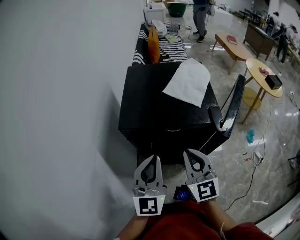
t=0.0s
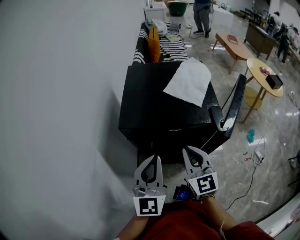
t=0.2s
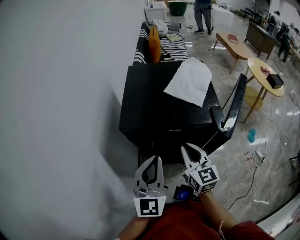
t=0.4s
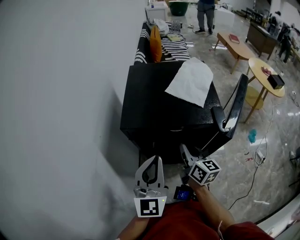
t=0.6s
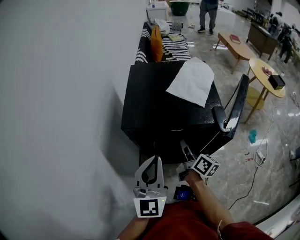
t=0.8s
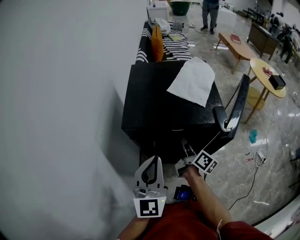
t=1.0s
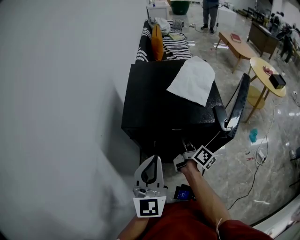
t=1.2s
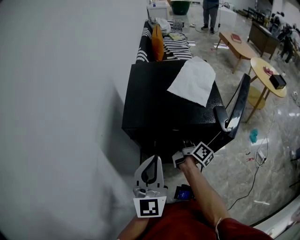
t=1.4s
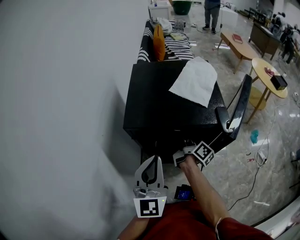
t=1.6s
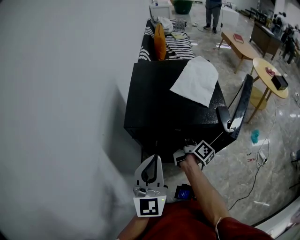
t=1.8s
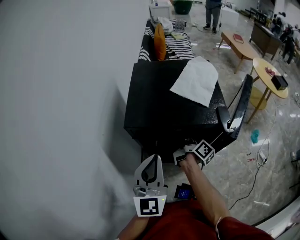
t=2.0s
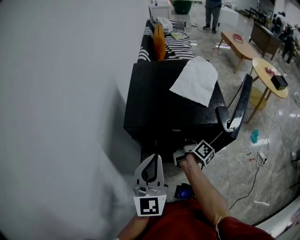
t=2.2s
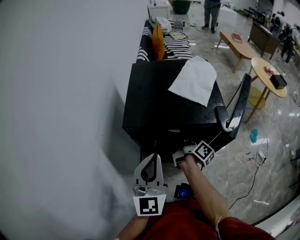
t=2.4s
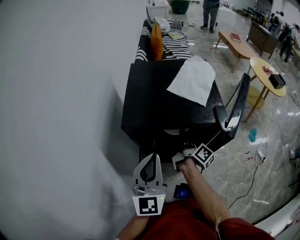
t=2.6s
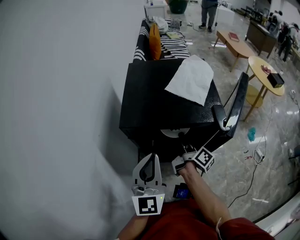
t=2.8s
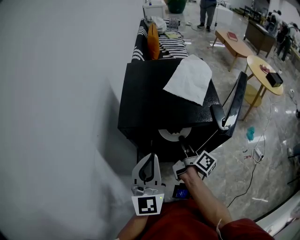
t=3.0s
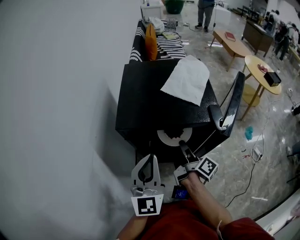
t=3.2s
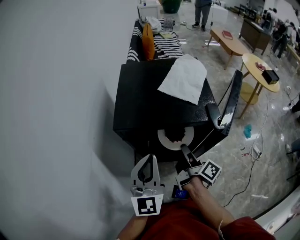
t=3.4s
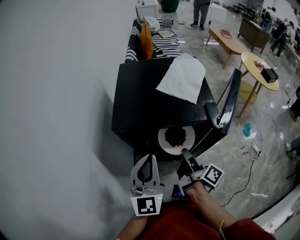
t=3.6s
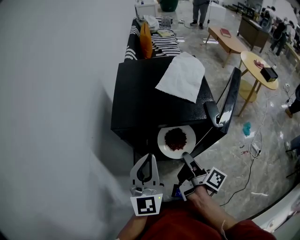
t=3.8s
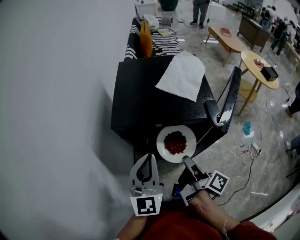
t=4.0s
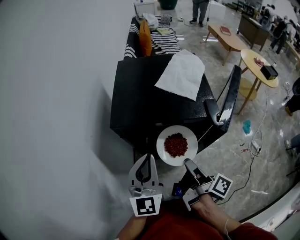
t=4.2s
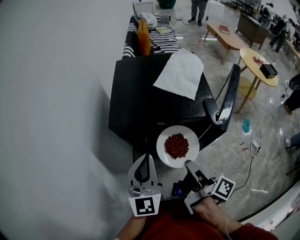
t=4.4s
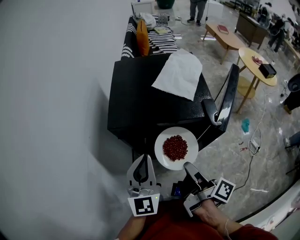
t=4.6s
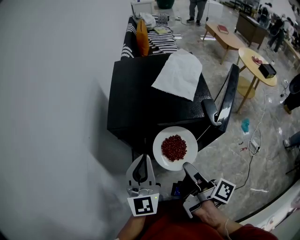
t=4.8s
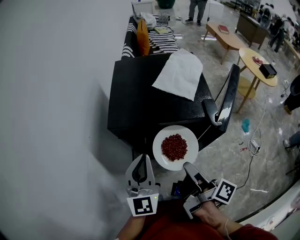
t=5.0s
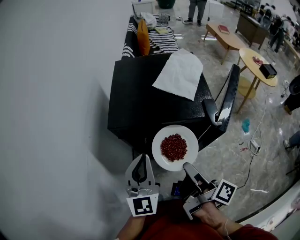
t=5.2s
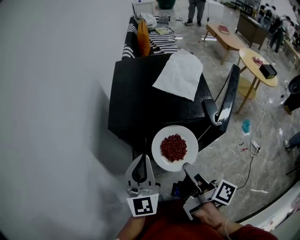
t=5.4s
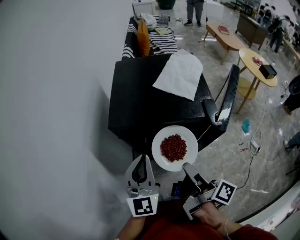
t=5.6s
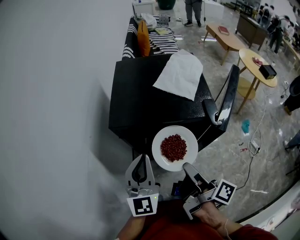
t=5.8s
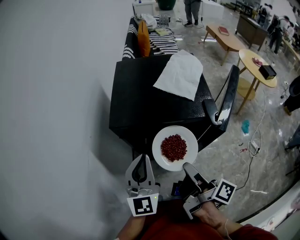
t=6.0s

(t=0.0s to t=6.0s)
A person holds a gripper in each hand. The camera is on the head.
t=0.0s - t=1.6s: The right gripper shifts approximately 20 cm downward and forward, and rotates around the line of its fingers by approximately 80 degrees, clockwise from behind.
t=1.6s - t=3.0s: The right gripper is displaced backward by roughly 5 cm.
t=3.0s - t=4.4s: The right gripper heads backward and upward, covering approximately 15 cm.
t=4.4s - t=6.0s: The grippers move only a little.

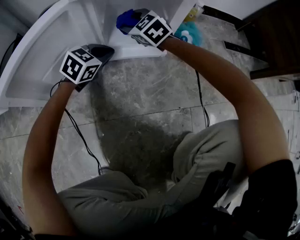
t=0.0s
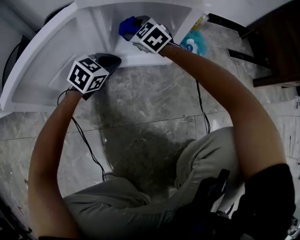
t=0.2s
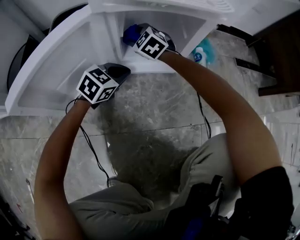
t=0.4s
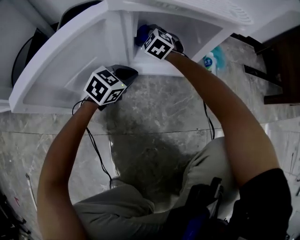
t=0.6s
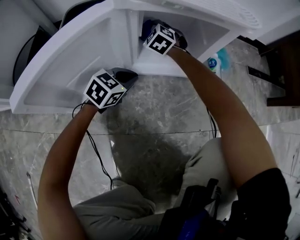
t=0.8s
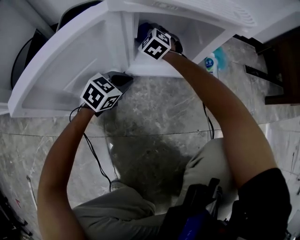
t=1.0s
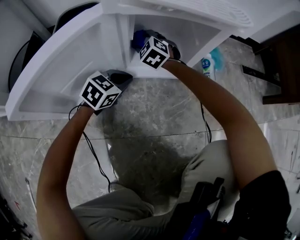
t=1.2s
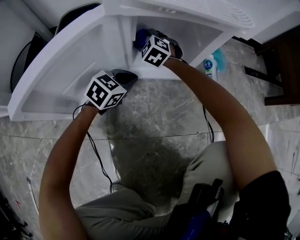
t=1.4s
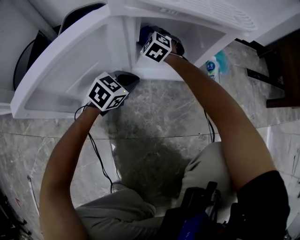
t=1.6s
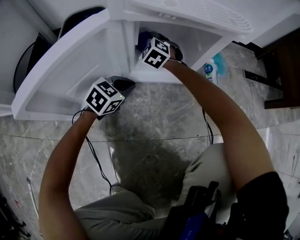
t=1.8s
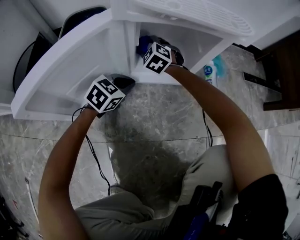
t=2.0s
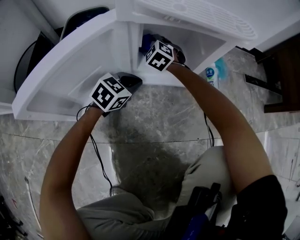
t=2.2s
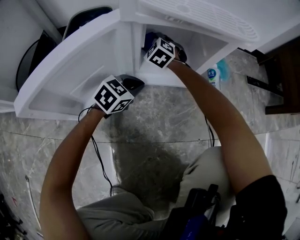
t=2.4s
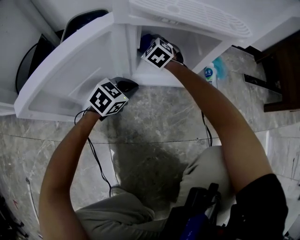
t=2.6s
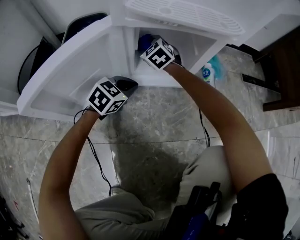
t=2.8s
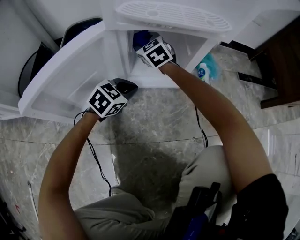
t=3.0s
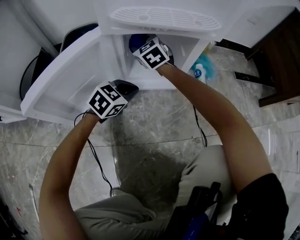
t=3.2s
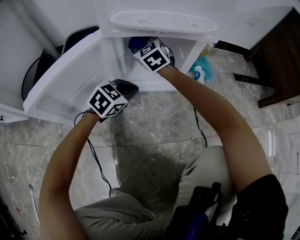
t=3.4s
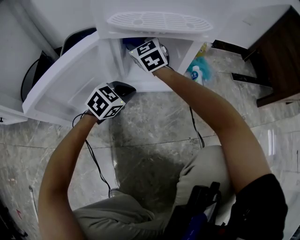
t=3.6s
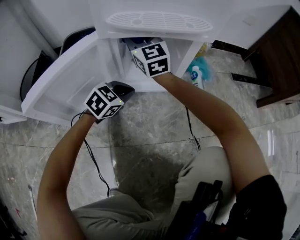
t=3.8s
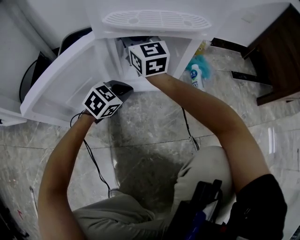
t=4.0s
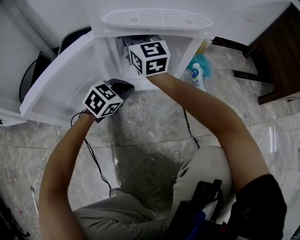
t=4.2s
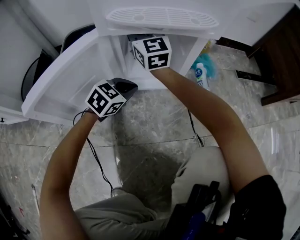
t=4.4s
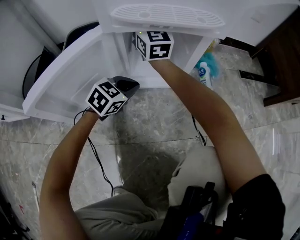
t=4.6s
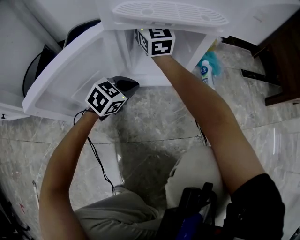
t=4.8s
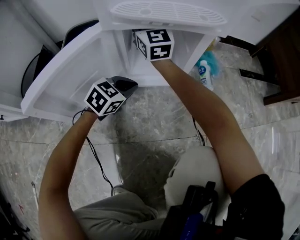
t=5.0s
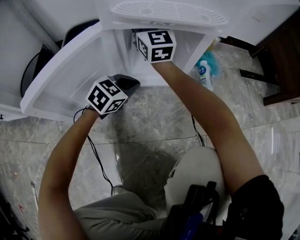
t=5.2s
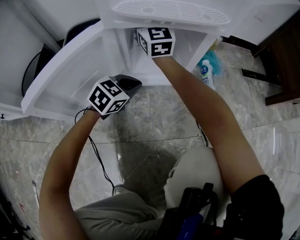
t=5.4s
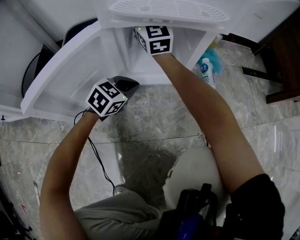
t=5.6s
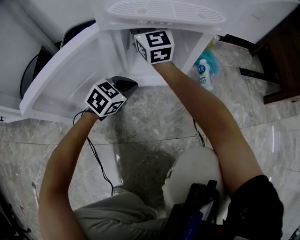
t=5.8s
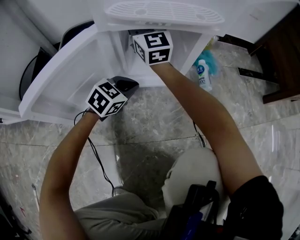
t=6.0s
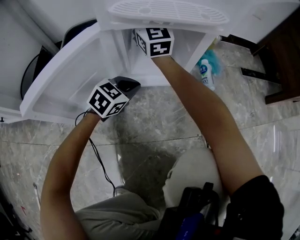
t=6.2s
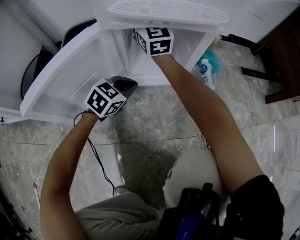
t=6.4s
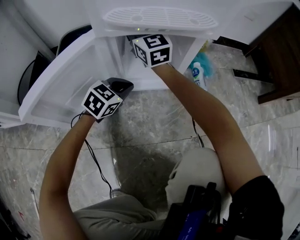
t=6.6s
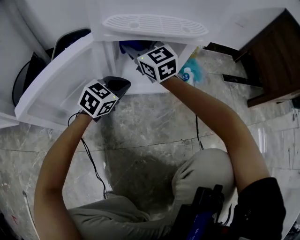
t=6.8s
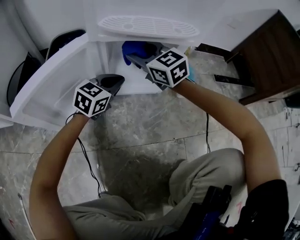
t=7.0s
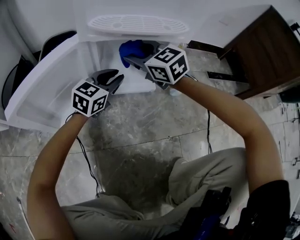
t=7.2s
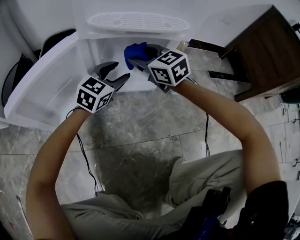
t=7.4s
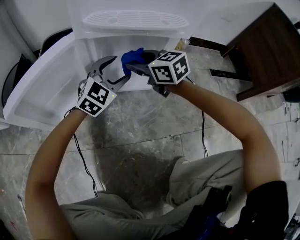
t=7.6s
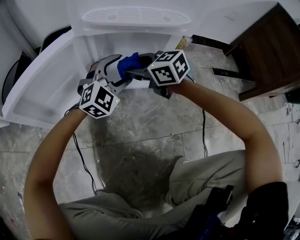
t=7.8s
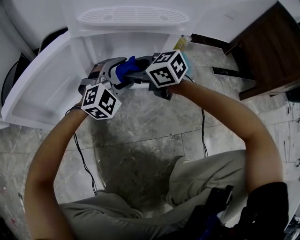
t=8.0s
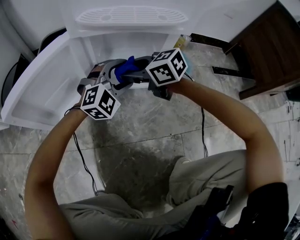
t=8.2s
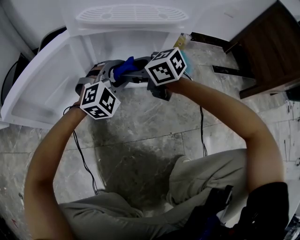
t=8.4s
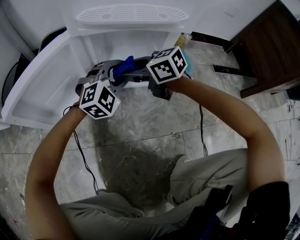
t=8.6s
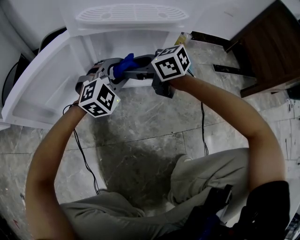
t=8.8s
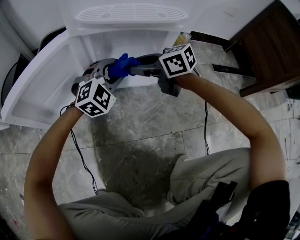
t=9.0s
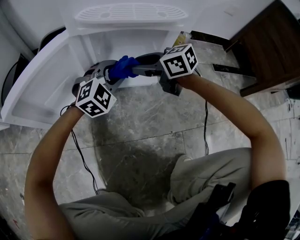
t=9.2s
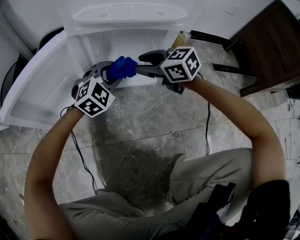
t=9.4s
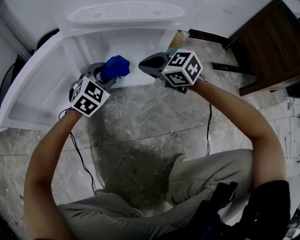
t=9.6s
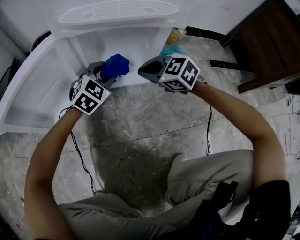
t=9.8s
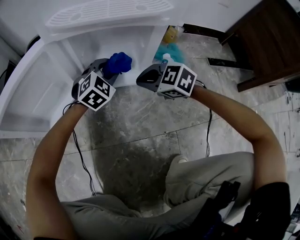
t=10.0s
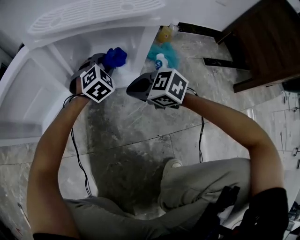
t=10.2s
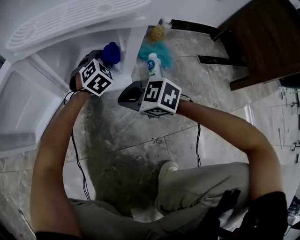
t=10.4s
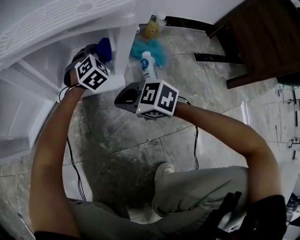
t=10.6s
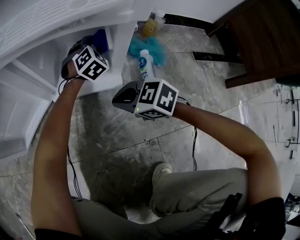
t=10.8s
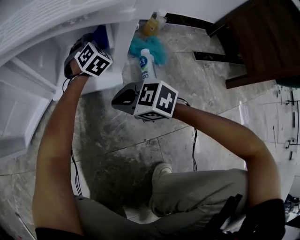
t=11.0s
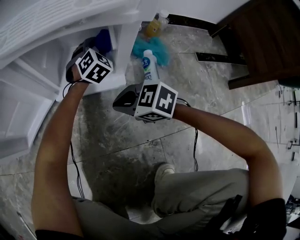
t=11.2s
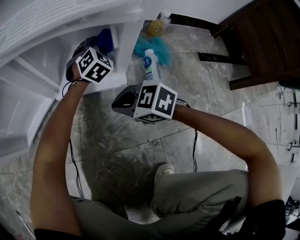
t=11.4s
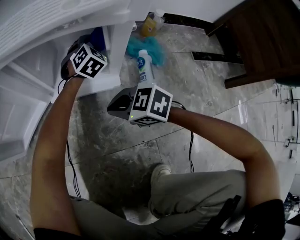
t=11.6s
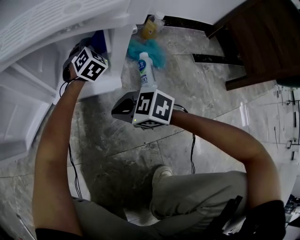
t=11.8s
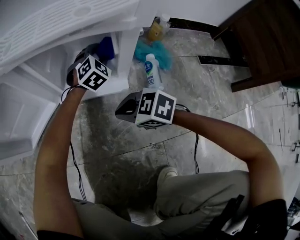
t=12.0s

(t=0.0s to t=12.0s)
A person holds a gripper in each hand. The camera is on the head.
t=0.0s - t=1.6s: The left gripper shifts by approximately 5 cm. The right gripper moves downward, to the left and forward, approximately 10 cm, and rotates approximately 20 degrees.
t=1.6s - t=3.0s: The right gripper moves upward, roughly 10 cm, and swivels about 30 degrees.
t=3.0s - t=4.4s: The right gripper heads upward, covering approximately 15 cm, and tilts its fingers some 40 degrees upward.
t=4.4s - t=6.0s: There are only small adjustments of the grippers.
t=6.0s - t=7.6s: The left gripper heads upward and forward, covering approximately 10 cm, swivels about 30 degrees, and opens up. Meanwhile the right gripper goes about 15 cm backward, to the right and downward, and angles its fingers downward, by some 40 degrees.
t=7.6s - t=9.0s: The left gripper rotates some 20 degrees, and closes. The right gripper swivels approximately 20 degrees.
t=9.0s - t=10.4s: The right gripper goes roughly 15 cm downward and backward, rotates approximately 30 degrees, and closes up, while the left gripper shifts some 20 cm to the right, downward and forward, and swivels some 20 degrees.

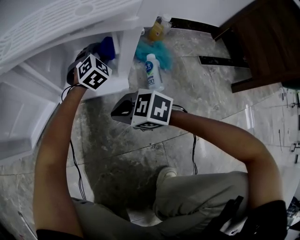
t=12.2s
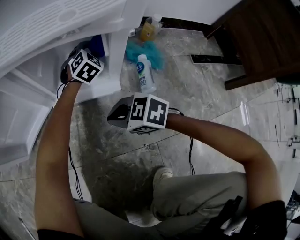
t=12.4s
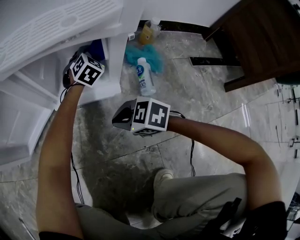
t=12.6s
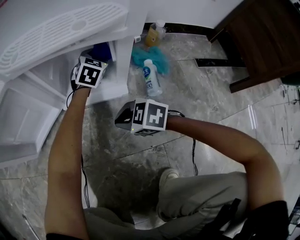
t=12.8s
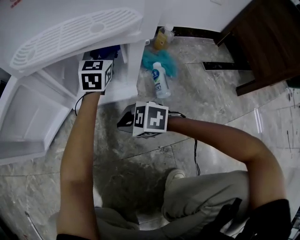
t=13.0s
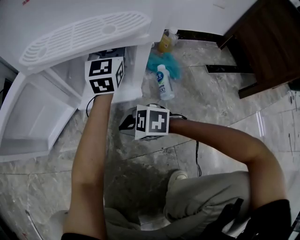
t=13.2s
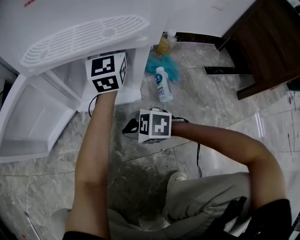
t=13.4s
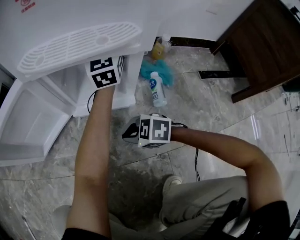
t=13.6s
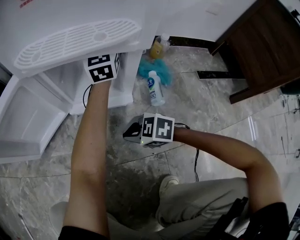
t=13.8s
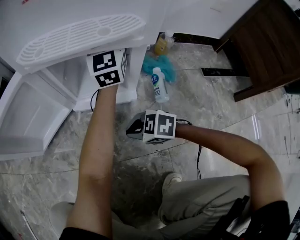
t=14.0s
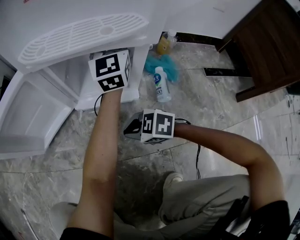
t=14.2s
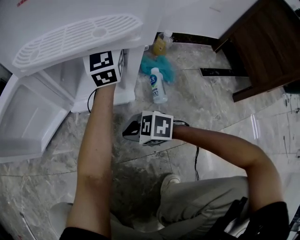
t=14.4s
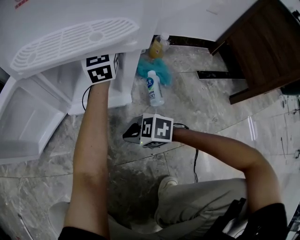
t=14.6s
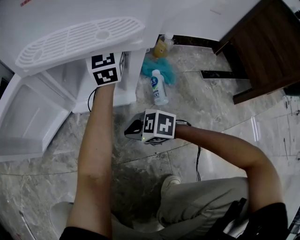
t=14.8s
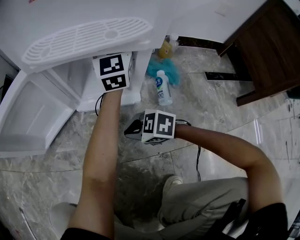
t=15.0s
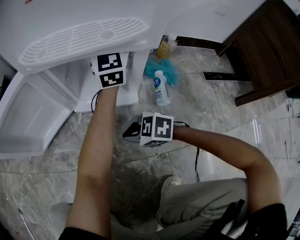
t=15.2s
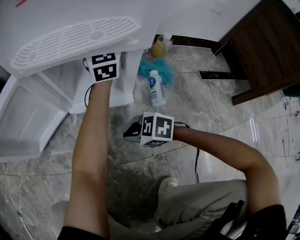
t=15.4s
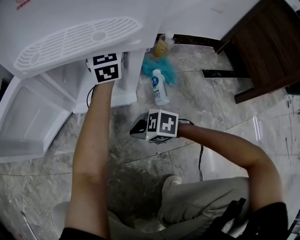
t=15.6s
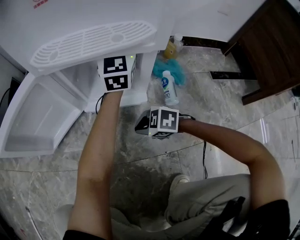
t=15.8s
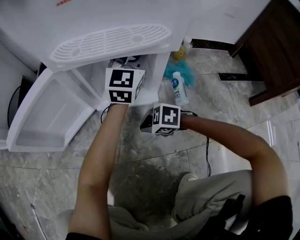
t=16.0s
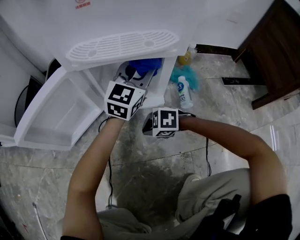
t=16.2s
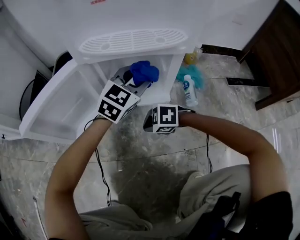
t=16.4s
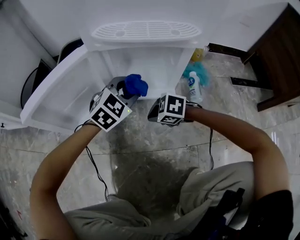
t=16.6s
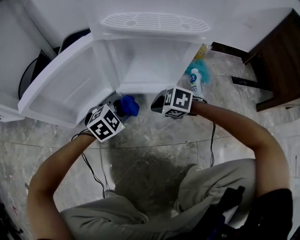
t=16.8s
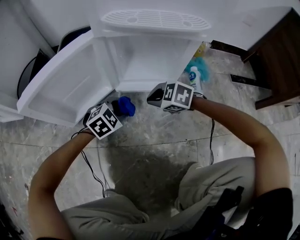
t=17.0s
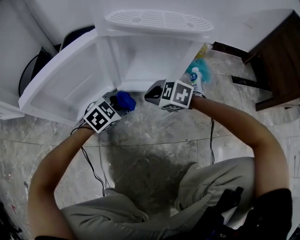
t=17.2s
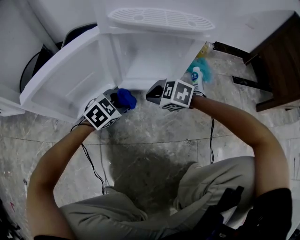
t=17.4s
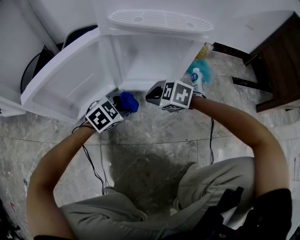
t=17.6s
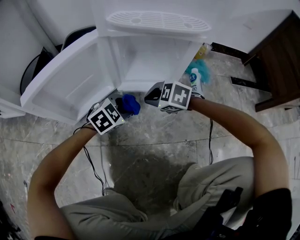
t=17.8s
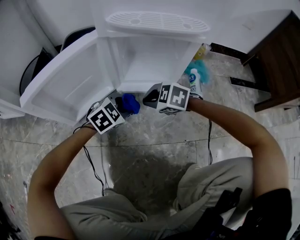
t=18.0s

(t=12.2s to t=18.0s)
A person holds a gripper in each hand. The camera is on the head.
t=12.2s - t=13.6s: The left gripper is displaced upward by roughly 25 cm, and points its fingers roughly 40 degrees further upward.
t=13.6s - t=15.0s: The grippers make only small movements.
t=15.0s - t=16.6s: The left gripper shifts by roughly 25 cm, and points its fingers roughly 40 degrees further downward. Meanwhile the right gripper shifts by roughly 5 cm.
t=16.6s - t=18.0s: The right gripper moves roughly 5 cm, while the left gripper goes approximately 10 cm downward.
